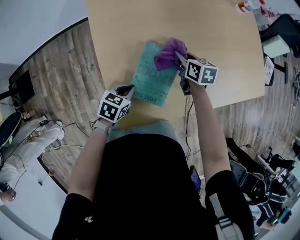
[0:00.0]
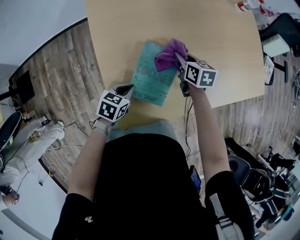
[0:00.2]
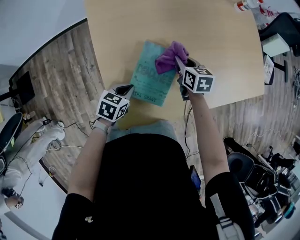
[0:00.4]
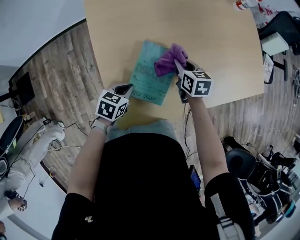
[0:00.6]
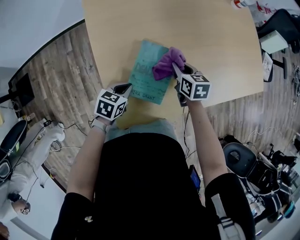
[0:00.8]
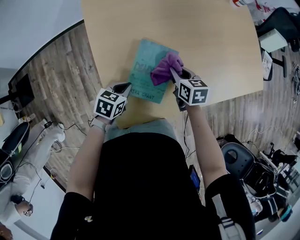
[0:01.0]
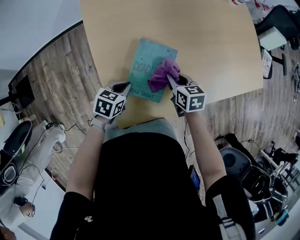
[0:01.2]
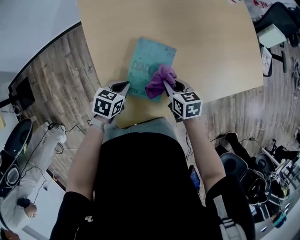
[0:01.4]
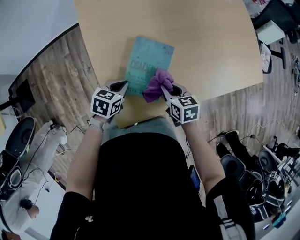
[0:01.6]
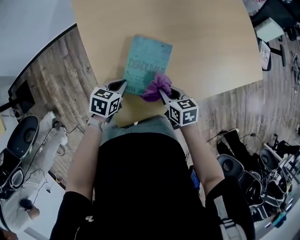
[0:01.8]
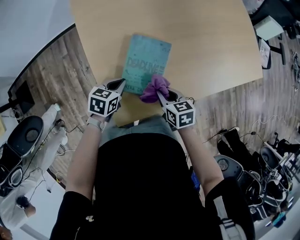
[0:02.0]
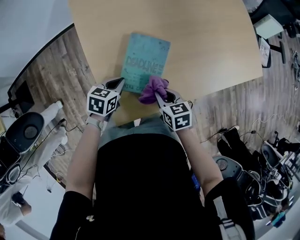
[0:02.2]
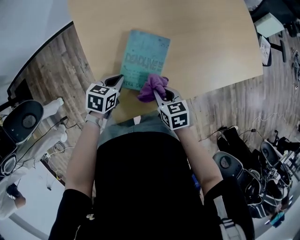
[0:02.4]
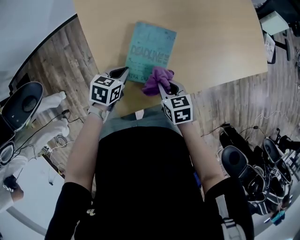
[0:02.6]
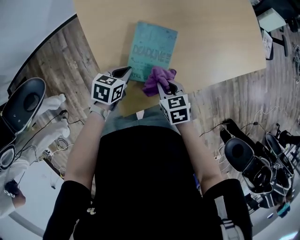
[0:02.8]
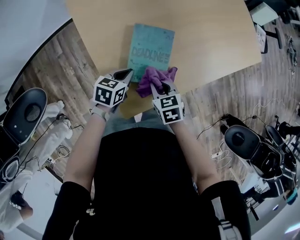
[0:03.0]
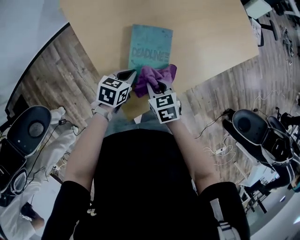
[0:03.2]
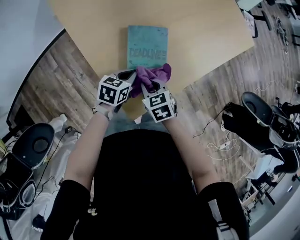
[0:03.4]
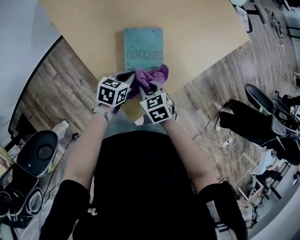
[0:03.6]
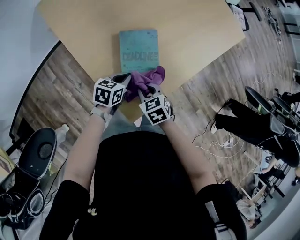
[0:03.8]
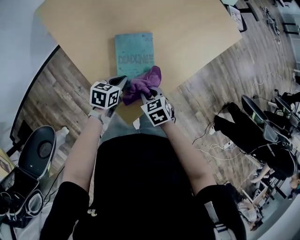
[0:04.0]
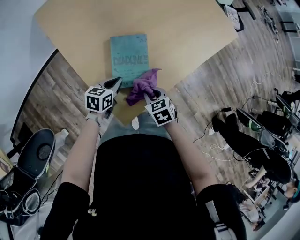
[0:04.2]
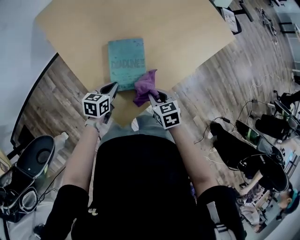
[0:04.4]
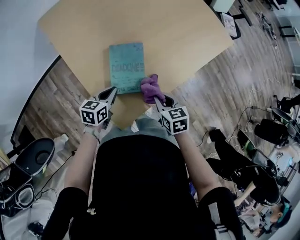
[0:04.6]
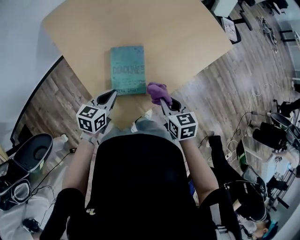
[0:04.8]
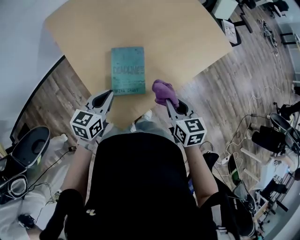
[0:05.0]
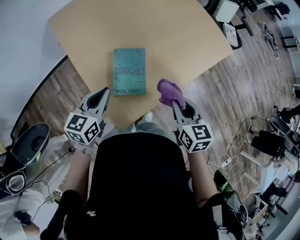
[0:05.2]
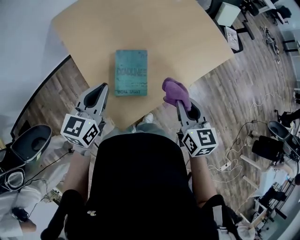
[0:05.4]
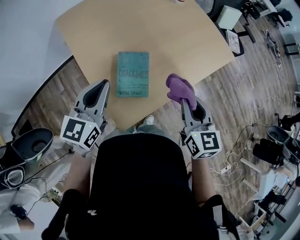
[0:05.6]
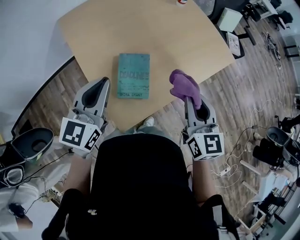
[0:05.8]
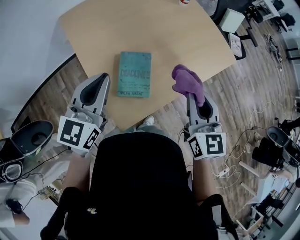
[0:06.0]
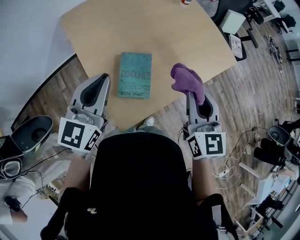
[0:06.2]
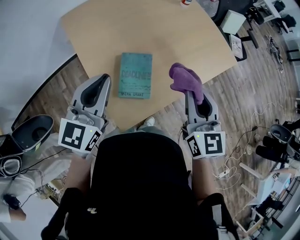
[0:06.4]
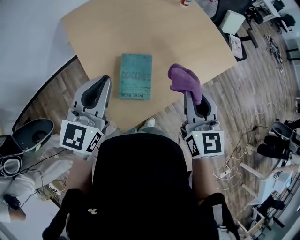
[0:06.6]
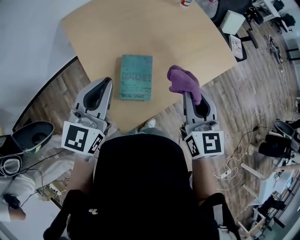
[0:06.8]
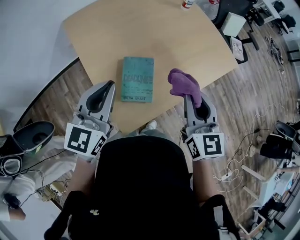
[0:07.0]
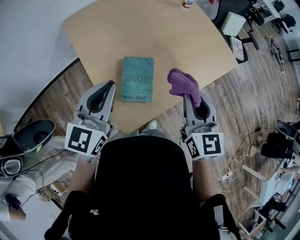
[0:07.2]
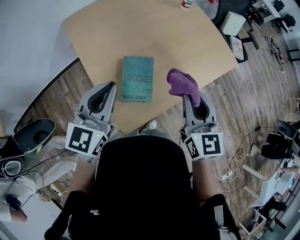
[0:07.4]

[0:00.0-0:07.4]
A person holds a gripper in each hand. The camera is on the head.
0:00.0 to 0:01.4: The right gripper shifts roughly 15 cm backward.
0:01.4 to 0:03.0: The right gripper moves backward and to the left, some 10 cm.
0:03.0 to 0:04.4: The right gripper shifts roughly 5 cm to the right.
0:04.4 to 0:06.0: The grippers both shift upward by approximately 35 cm. The right gripper angles its fingers upward, by roughly 40 degrees. The left gripper points its fingers about 30 degrees further upward.
0:06.0 to 0:07.4: The grippers make only small movements.

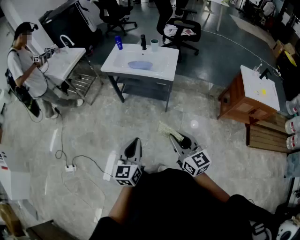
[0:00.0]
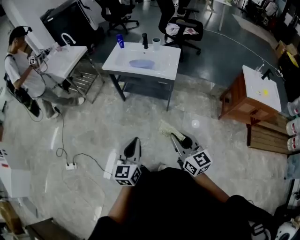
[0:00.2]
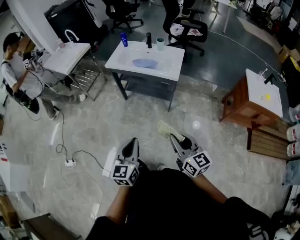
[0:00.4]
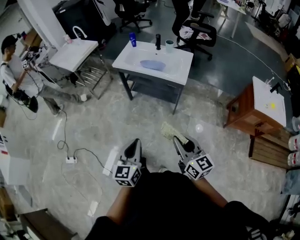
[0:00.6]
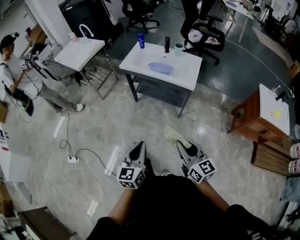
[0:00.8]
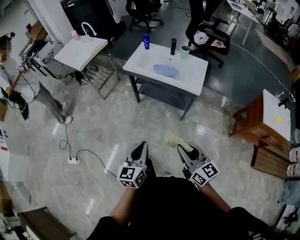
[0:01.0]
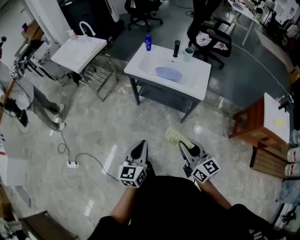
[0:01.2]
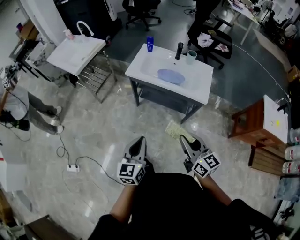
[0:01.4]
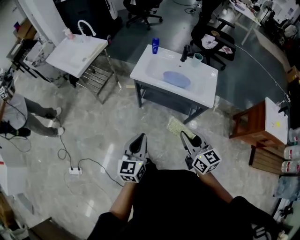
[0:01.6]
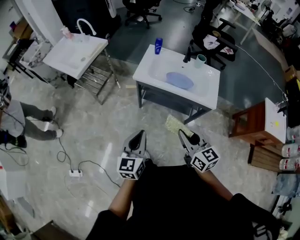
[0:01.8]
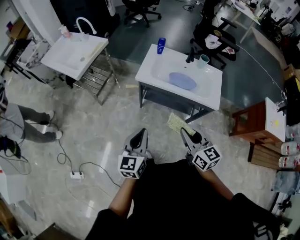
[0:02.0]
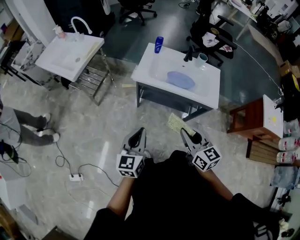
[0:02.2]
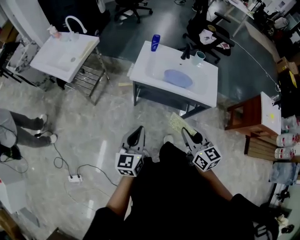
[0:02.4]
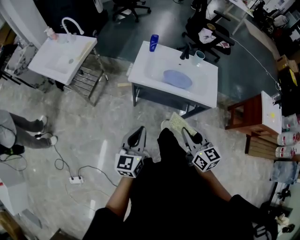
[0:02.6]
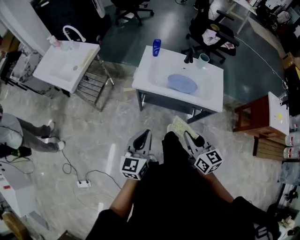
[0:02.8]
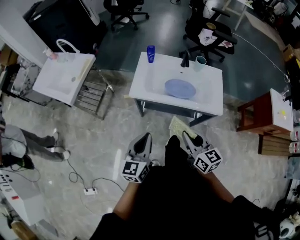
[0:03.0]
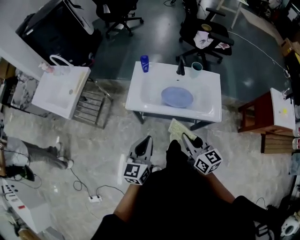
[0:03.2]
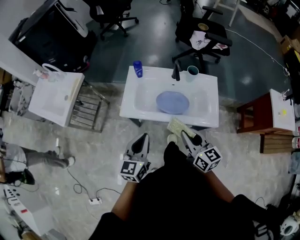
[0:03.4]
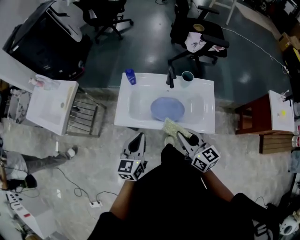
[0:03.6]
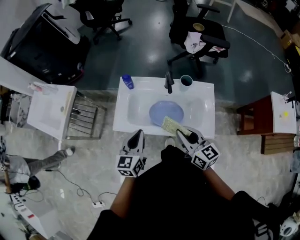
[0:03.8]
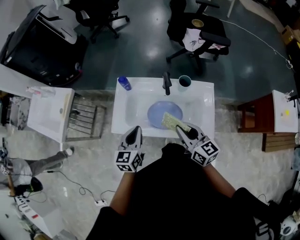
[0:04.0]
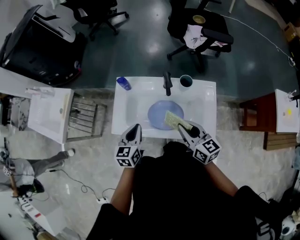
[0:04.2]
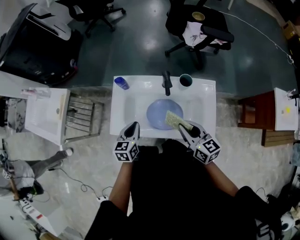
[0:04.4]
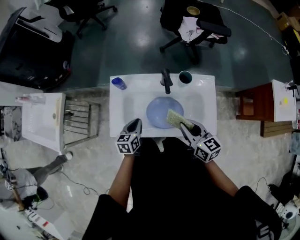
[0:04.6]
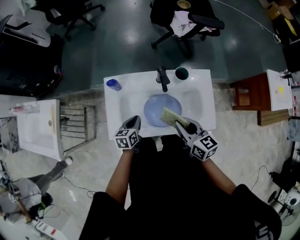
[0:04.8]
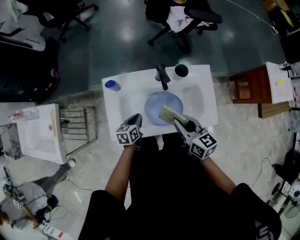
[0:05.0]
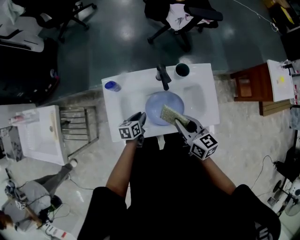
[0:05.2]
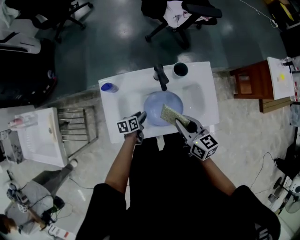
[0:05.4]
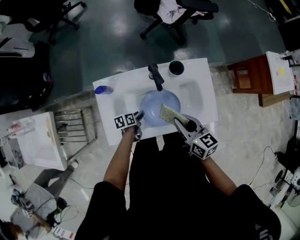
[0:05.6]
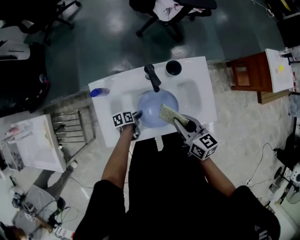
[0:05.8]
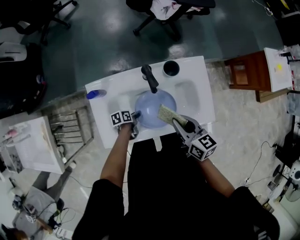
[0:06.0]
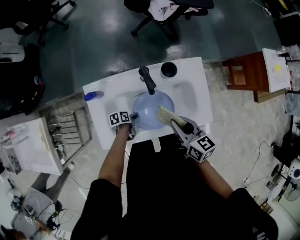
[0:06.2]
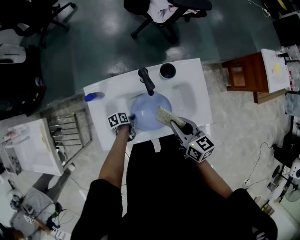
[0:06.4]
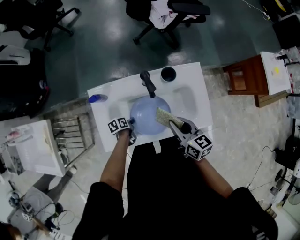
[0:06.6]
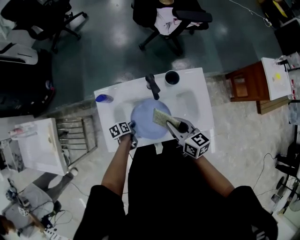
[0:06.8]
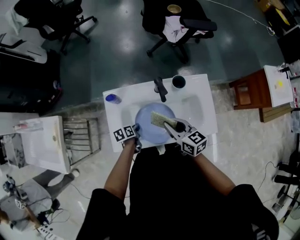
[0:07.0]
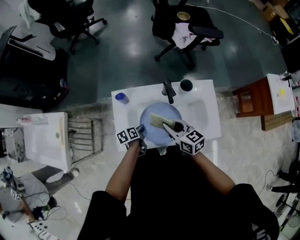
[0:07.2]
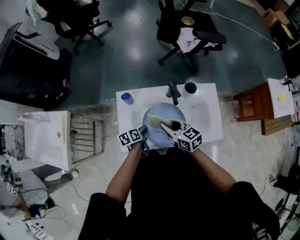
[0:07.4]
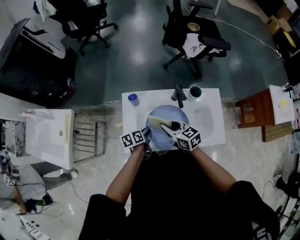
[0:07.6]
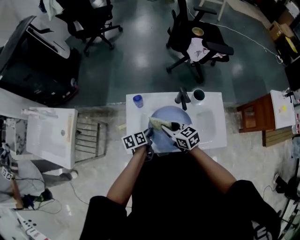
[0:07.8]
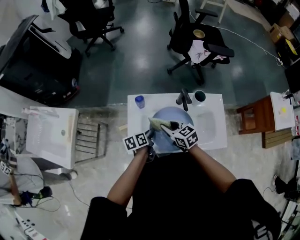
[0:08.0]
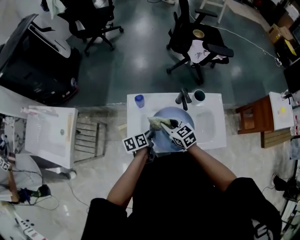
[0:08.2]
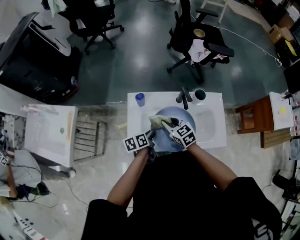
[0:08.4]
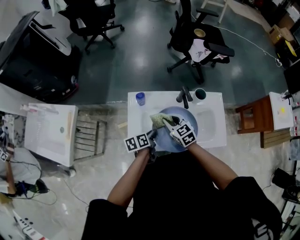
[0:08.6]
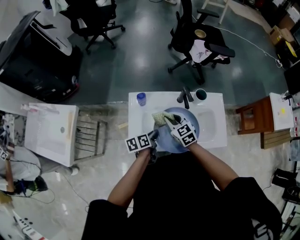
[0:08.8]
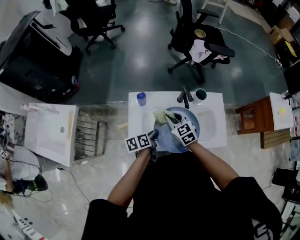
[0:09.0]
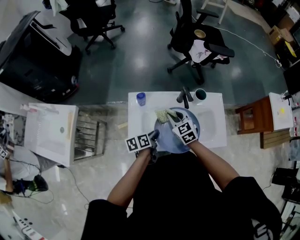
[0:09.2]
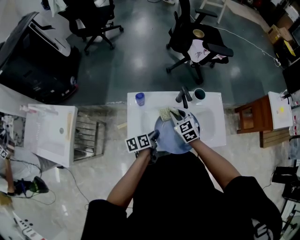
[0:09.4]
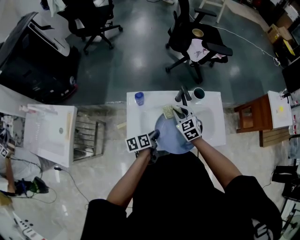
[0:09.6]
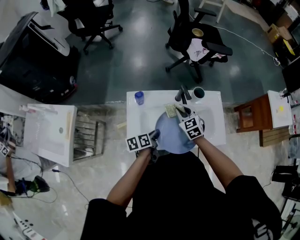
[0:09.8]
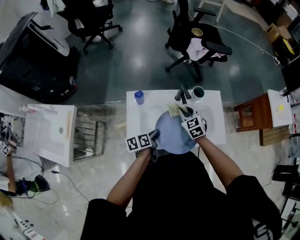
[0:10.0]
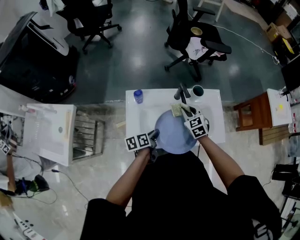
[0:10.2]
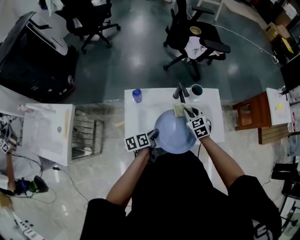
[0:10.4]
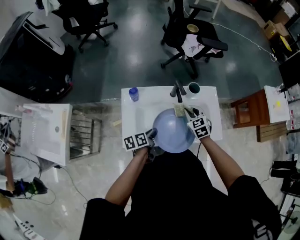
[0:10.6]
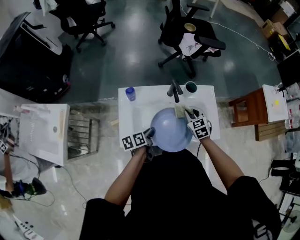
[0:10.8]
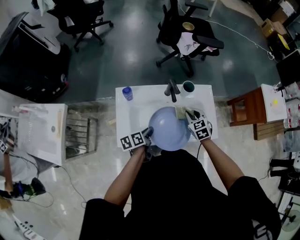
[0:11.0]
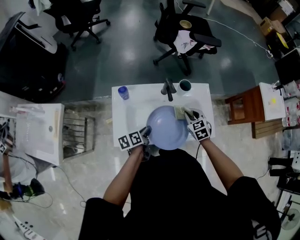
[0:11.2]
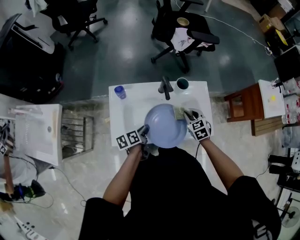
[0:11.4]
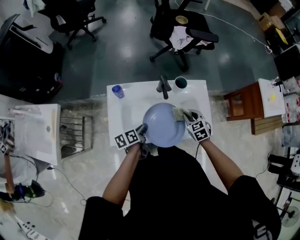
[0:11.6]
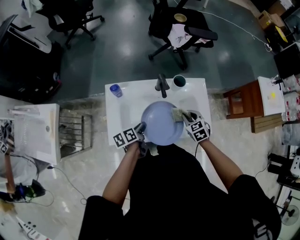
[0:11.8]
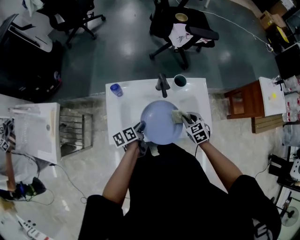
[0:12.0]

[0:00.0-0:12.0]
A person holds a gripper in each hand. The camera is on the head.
0:00.0 to 0:01.6: Both grippers move forward and to the left, approximately 35 cm.
0:01.6 to 0:03.0: Both grippers move forward, approximately 15 cm.
0:03.0 to 0:04.4: The left gripper goes about 35 cm forward and downward, and changes its angle by some 20 degrees. Meanwhile the right gripper shifts approximately 30 cm forward and to the right.
0:04.4 to 0:06.0: The right gripper goes roughly 5 cm downward, and rotates approximately 20 degrees, while the left gripper shifts about 25 cm downward, turns by some 60 degrees, and opens.
0:06.0 to 0:07.6: The right gripper ends up some 20 cm from where it was, and rotates about 30 degrees; the left gripper goes approximately 15 cm upward, changes its angle by some 20 degrees, and closes.
0:07.6 to 0:09.0: The right gripper swivels some 30 degrees, while the left gripper shifts by about 5 cm.
0:09.0 to 0:10.4: The right gripper moves to the right, some 15 cm.
0:10.4 to 0:12.0: The right gripper travels to the right and backward by approximately 10 cm.

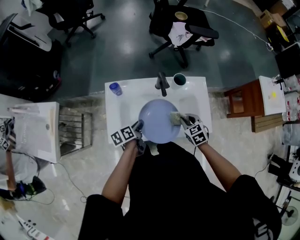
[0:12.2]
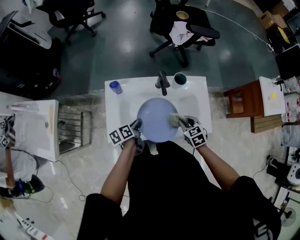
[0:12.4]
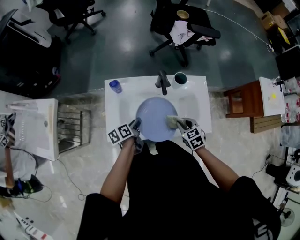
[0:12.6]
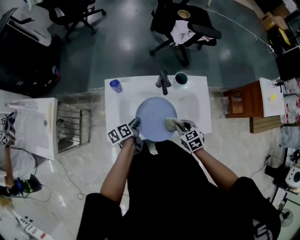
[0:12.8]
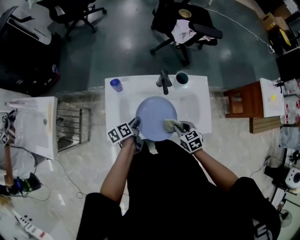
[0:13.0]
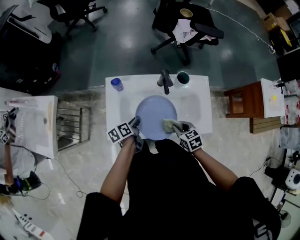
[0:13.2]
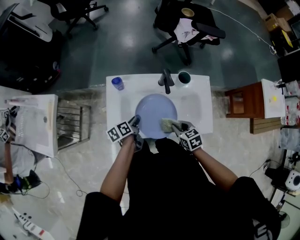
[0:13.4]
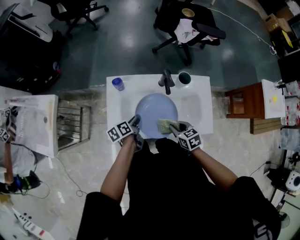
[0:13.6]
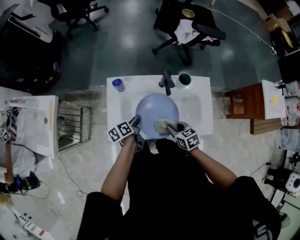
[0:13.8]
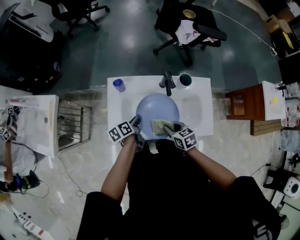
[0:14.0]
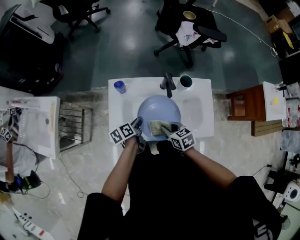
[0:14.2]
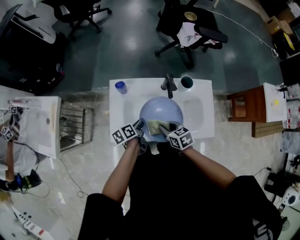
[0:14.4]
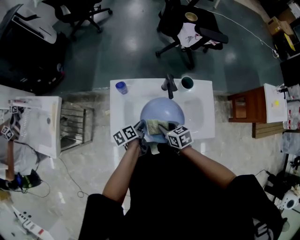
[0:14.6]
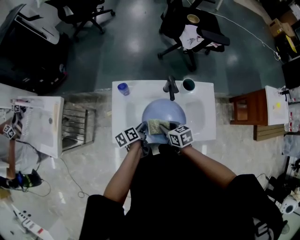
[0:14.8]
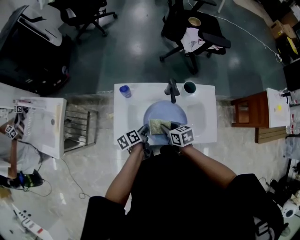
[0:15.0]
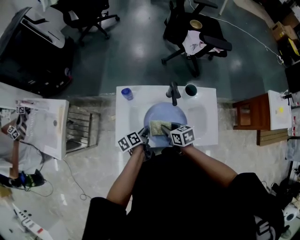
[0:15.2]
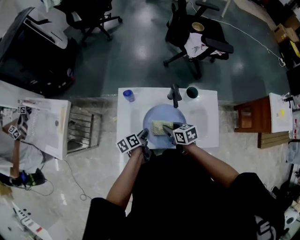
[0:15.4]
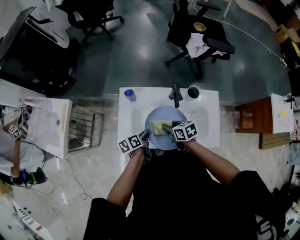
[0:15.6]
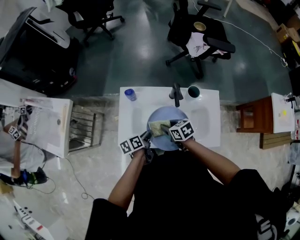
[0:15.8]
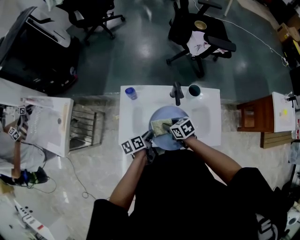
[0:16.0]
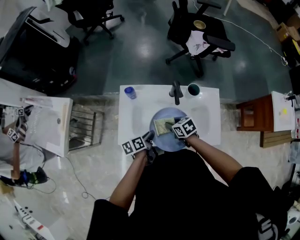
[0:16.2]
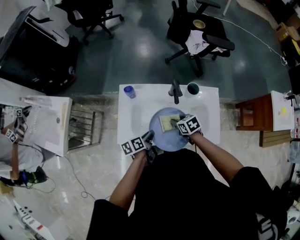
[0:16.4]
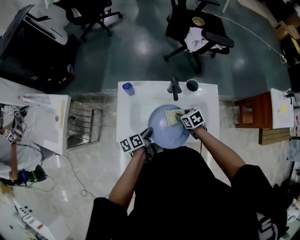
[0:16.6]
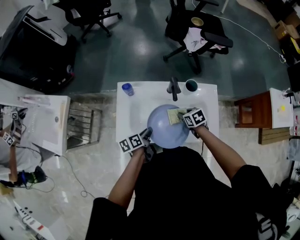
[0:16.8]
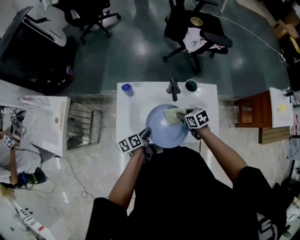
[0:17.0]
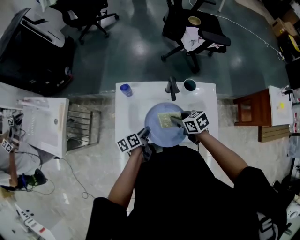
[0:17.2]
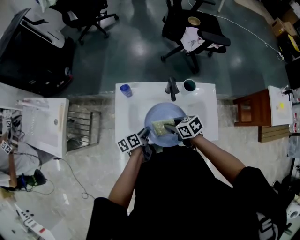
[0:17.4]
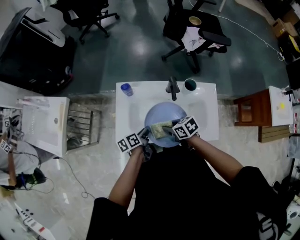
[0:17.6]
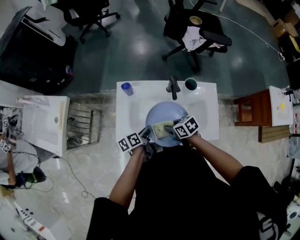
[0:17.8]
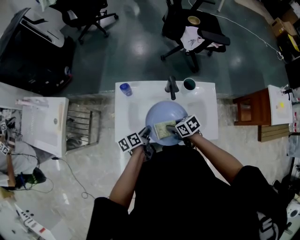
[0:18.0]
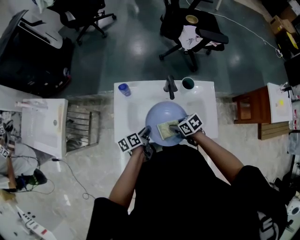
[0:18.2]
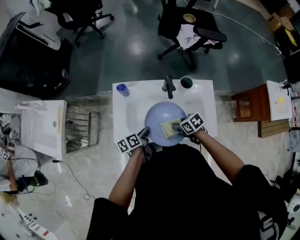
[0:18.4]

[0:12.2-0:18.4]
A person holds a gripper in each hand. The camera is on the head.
0:12.2 to 0:13.8: The right gripper moves to the left, roughly 10 cm, and rotates some 20 degrees.
0:13.8 to 0:15.4: The right gripper is displaced forward by about 5 cm.
0:15.4 to 0:16.8: The right gripper goes approximately 10 cm to the right.
0:16.8 to 0:18.4: The right gripper travels backward and to the left by approximately 10 cm.
